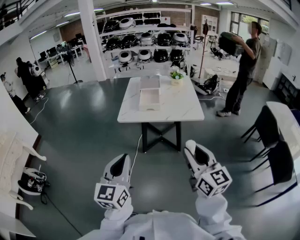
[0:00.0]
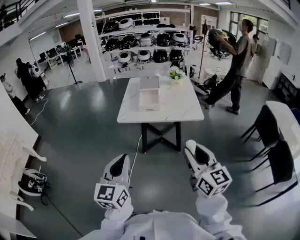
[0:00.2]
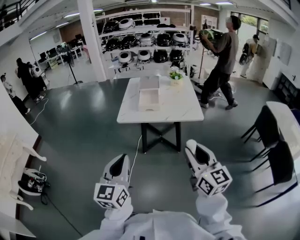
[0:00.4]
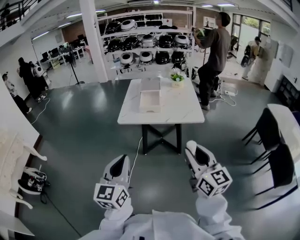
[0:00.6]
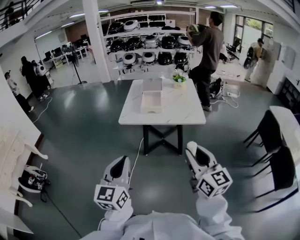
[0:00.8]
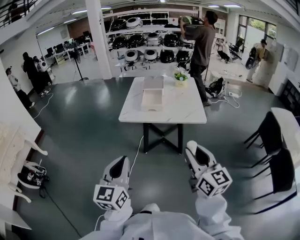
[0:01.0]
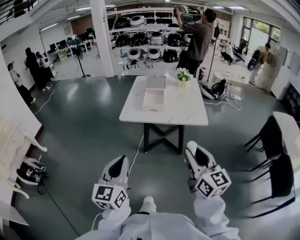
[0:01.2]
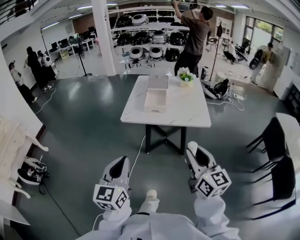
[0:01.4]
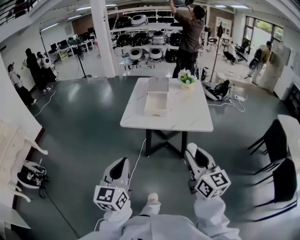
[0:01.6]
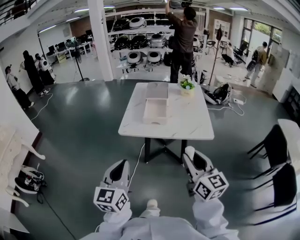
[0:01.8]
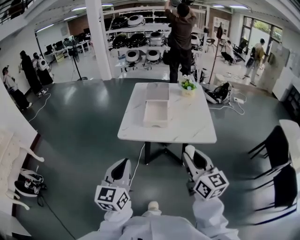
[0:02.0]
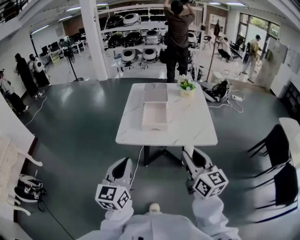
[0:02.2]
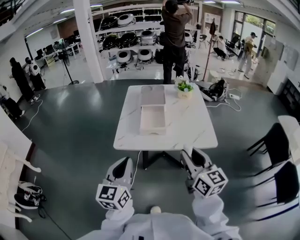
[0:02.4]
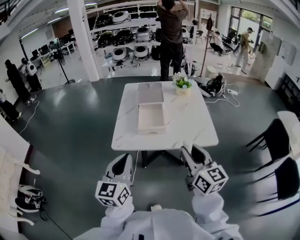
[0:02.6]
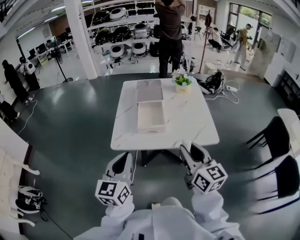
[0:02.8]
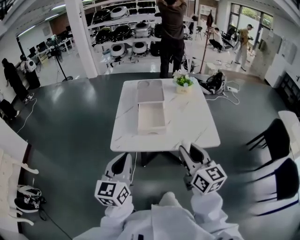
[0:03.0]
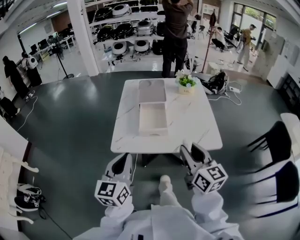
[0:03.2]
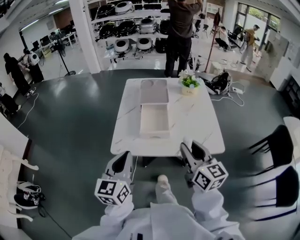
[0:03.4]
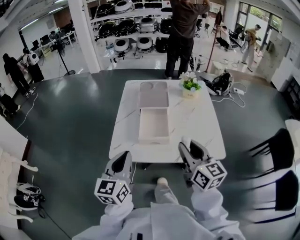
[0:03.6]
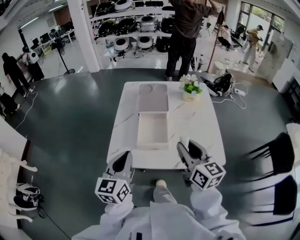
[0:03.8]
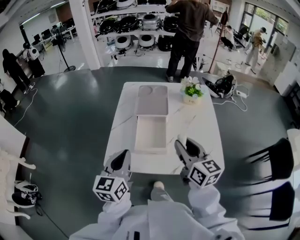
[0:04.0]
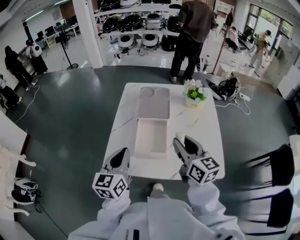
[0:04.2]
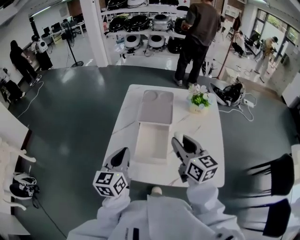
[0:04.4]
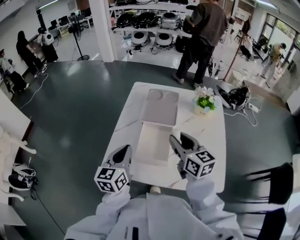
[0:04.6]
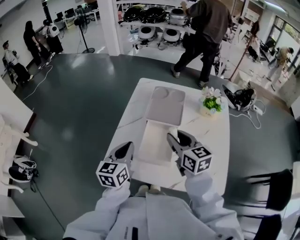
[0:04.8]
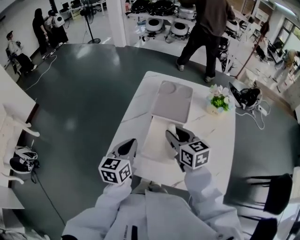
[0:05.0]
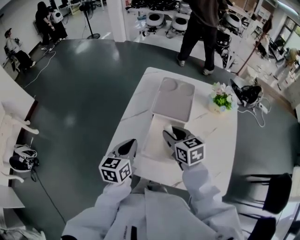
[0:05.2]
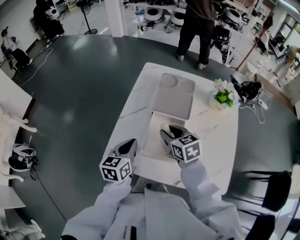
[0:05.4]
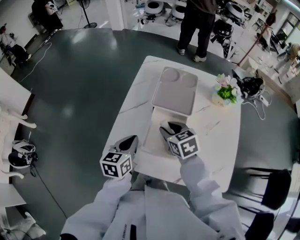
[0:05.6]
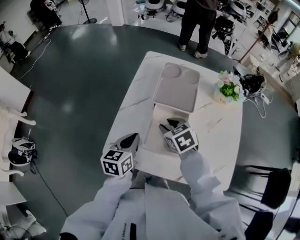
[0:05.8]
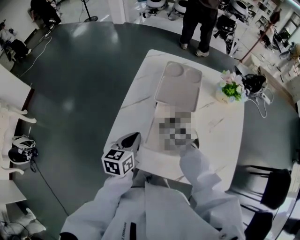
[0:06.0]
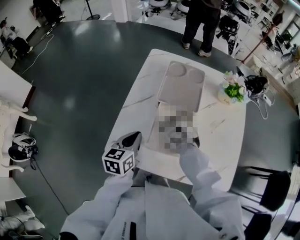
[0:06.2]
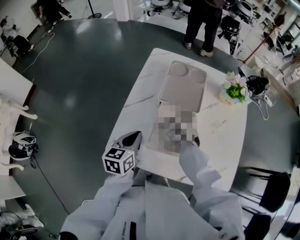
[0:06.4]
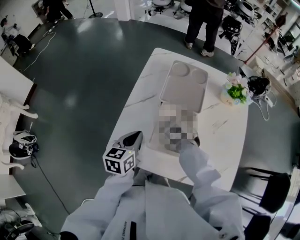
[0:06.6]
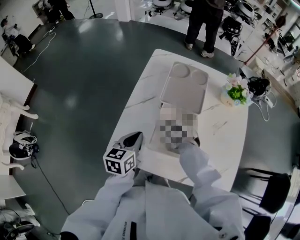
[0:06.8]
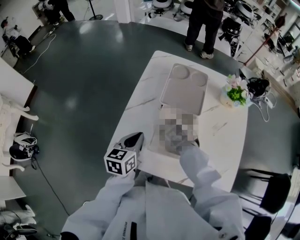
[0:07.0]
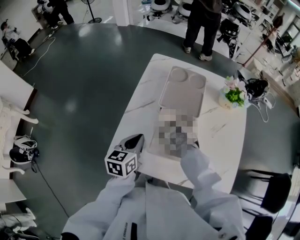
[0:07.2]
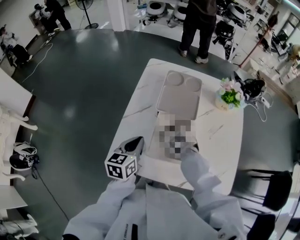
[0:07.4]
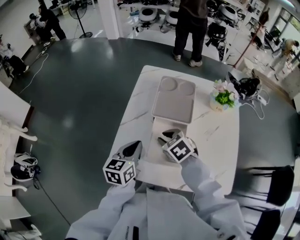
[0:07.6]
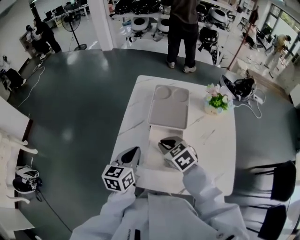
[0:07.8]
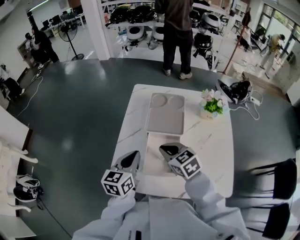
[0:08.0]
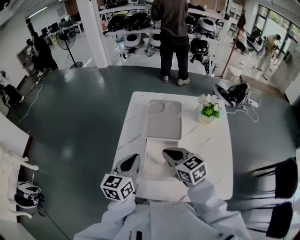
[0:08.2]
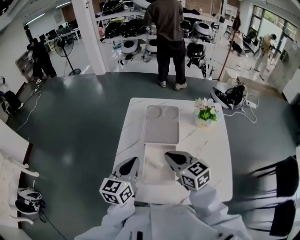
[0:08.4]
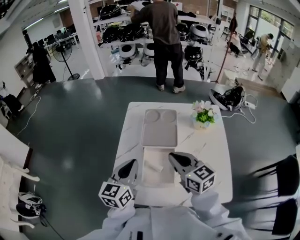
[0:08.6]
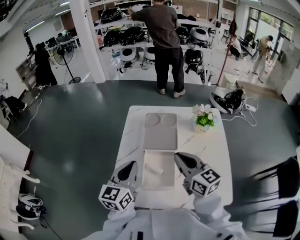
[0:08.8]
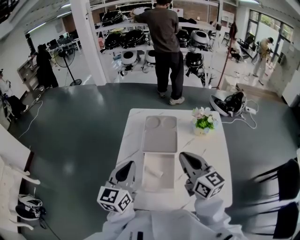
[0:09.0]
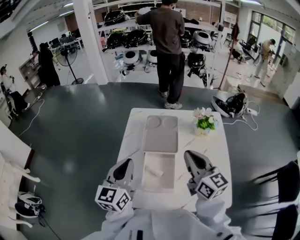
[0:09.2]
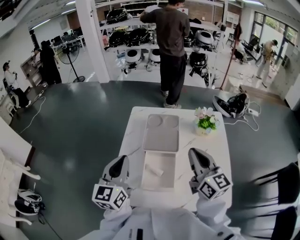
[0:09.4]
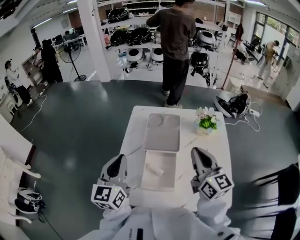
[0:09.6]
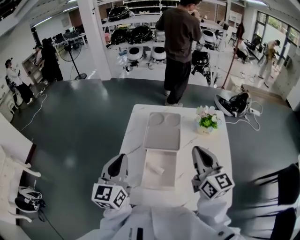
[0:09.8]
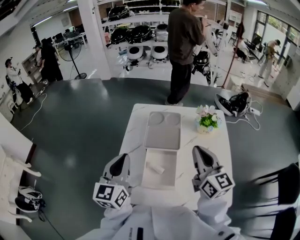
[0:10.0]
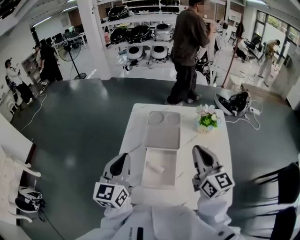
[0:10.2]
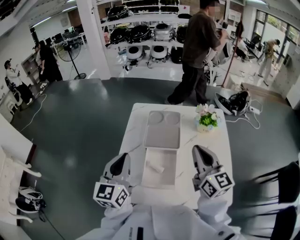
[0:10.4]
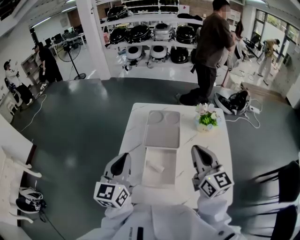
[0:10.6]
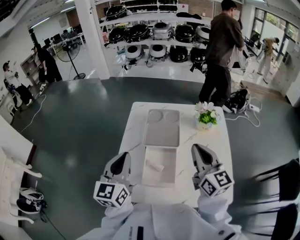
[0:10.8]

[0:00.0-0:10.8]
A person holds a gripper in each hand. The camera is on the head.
0:00.0 to 0:01.6: The two grippers go roughly 10 cm forward.
0:01.6 to 0:03.0: The two grippers go roughly 25 cm forward.
0:03.0 to 0:04.6: The grippers both shift forward by some 30 cm.
0:04.6 to 0:06.2: The right gripper travels downward, to the left and forward by approximately 25 cm, and points its fingers roughly 50 degrees further downward. Meanwhile the left gripper moves downward, about 10 cm.
0:06.2 to 0:07.8: The grippers both shift upward by approximately 5 cm. The right gripper closes up.
0:07.8 to 0:09.2: The left gripper is displaced upward by approximately 15 cm, and turns by approximately 20 degrees; the right gripper shifts roughly 25 cm upward and to the right, and tilts its fingers approximately 50 degrees upward.
0:09.2 to 0:10.8: The grippers move only a little.

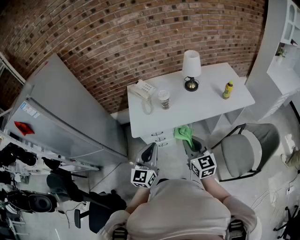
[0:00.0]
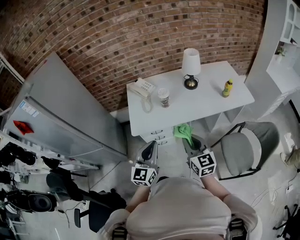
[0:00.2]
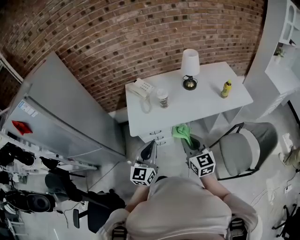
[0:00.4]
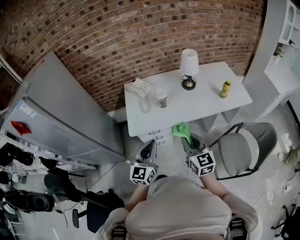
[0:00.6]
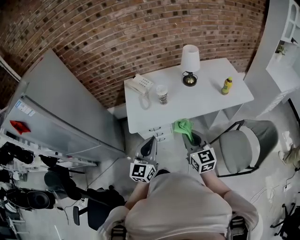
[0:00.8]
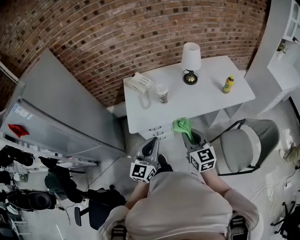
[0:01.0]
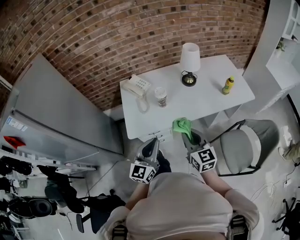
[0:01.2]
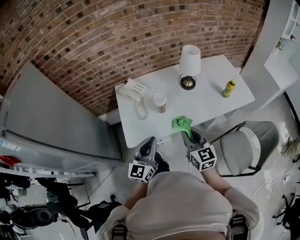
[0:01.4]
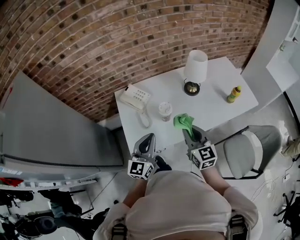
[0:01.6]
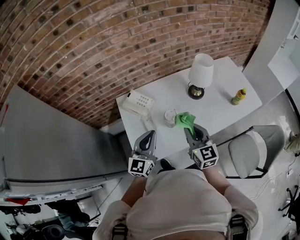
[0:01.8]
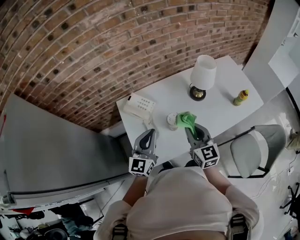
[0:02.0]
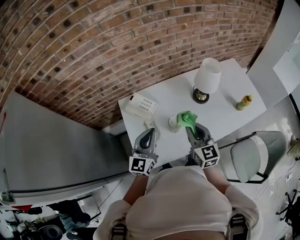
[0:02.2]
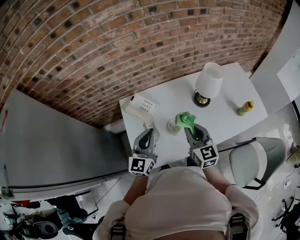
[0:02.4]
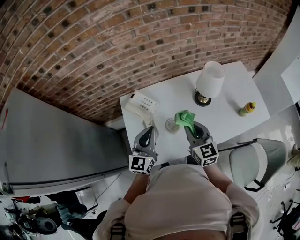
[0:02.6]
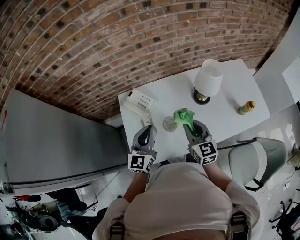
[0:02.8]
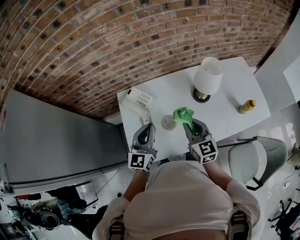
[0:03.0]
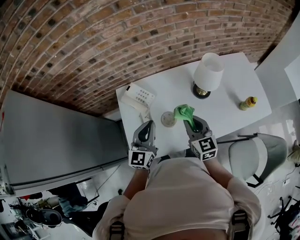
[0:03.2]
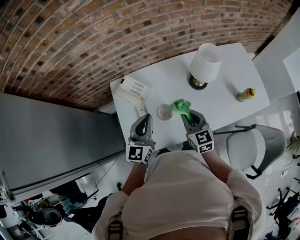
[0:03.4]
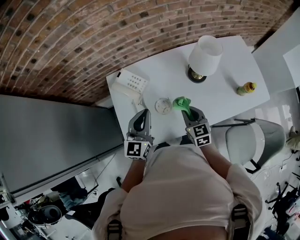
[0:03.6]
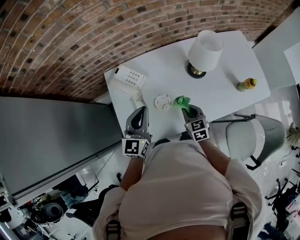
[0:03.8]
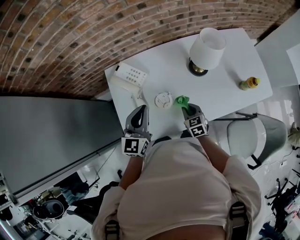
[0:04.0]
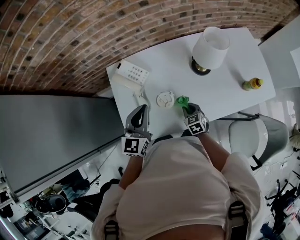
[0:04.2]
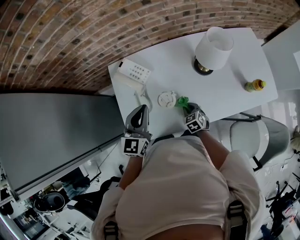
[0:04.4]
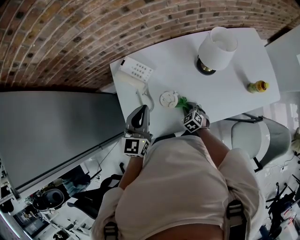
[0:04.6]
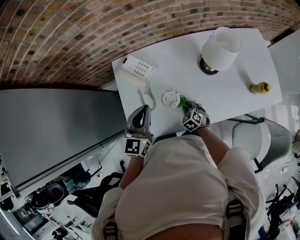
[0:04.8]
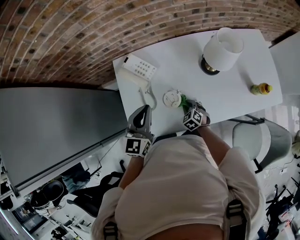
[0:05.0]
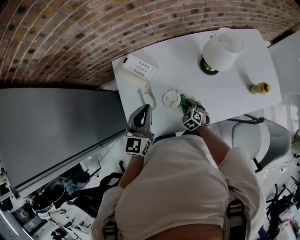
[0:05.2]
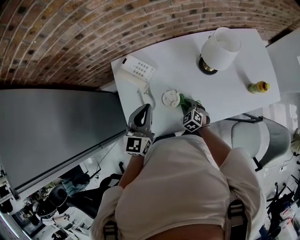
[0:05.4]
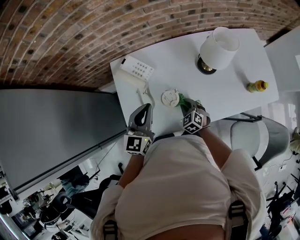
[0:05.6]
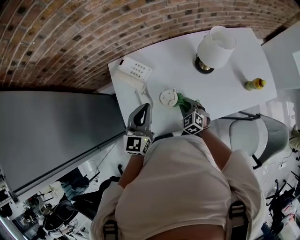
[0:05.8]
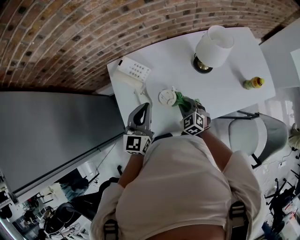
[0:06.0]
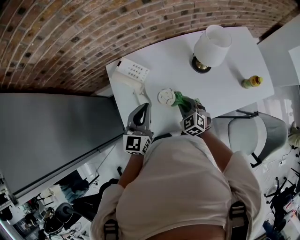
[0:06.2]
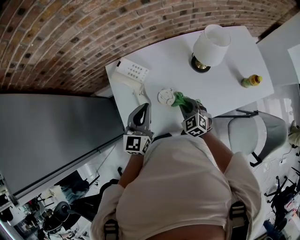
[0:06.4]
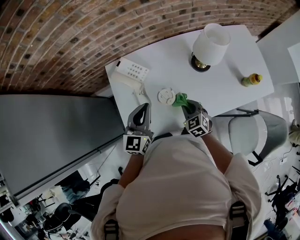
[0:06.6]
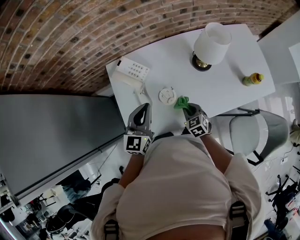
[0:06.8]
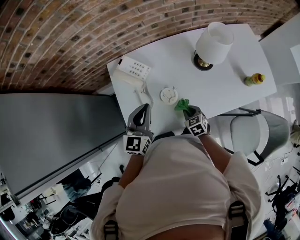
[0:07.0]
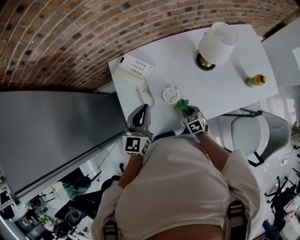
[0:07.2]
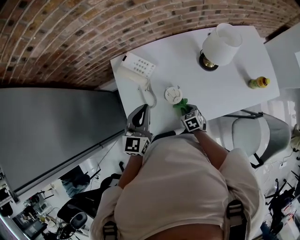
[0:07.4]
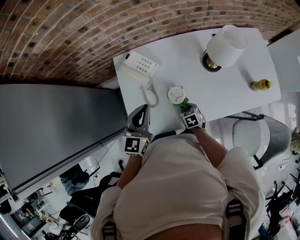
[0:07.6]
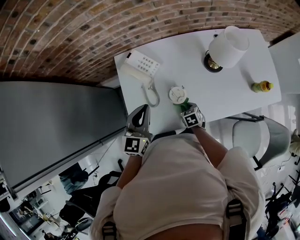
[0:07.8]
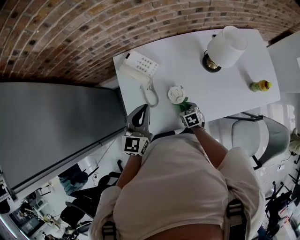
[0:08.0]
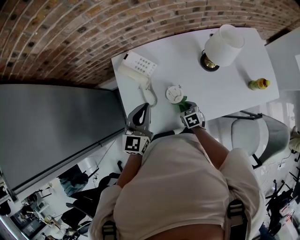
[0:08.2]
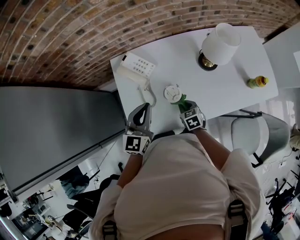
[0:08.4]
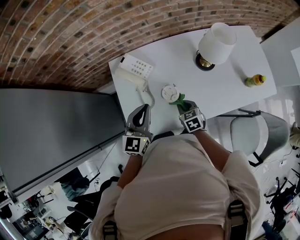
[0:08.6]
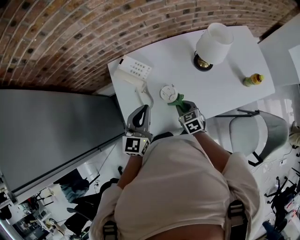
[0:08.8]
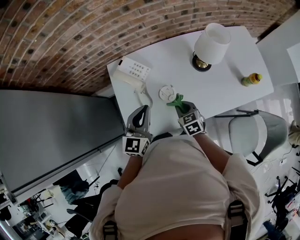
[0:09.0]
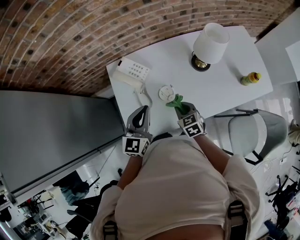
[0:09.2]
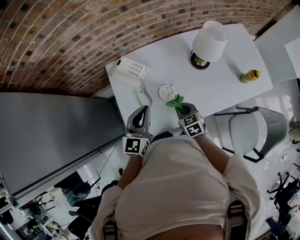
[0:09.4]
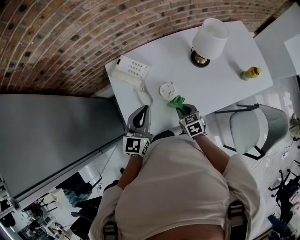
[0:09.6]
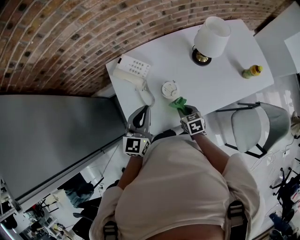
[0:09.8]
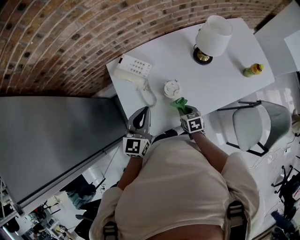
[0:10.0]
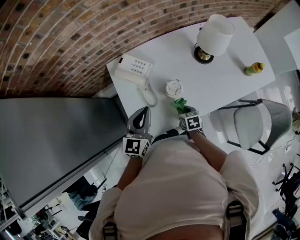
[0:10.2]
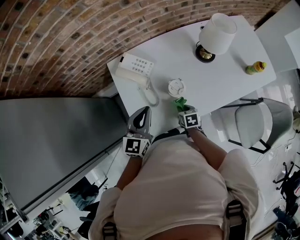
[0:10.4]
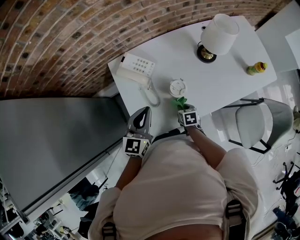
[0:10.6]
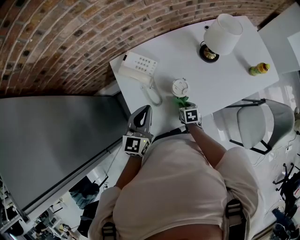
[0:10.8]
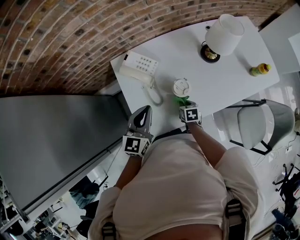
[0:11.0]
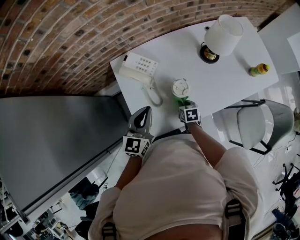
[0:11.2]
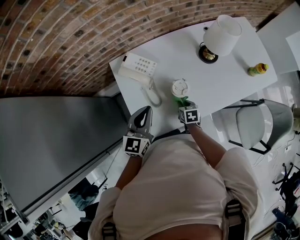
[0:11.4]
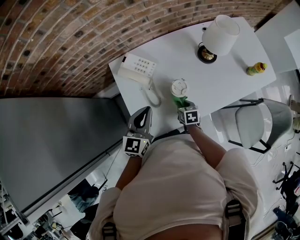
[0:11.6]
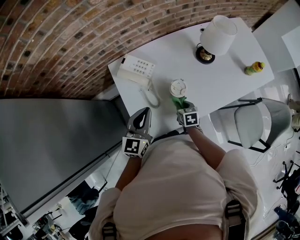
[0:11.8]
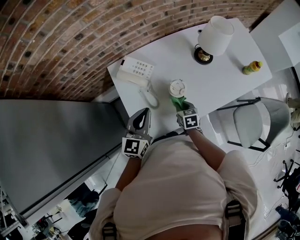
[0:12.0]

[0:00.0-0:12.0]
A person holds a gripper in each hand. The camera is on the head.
0:00.0 to 0:01.6: Both grippers travel together forward, about 25 cm.
0:01.6 to 0:03.0: The two grippers go approximately 15 cm forward.
0:03.0 to 0:04.4: The right gripper travels downward by roughly 30 cm, and points its fingers some 40 degrees further downward.
0:04.4 to 0:06.0: The right gripper heads upward, covering some 10 cm.
0:06.0 to 0:07.6: The right gripper heads downward, covering about 10 cm, and turns by roughly 30 degrees.
0:07.6 to 0:09.0: The right gripper moves upward, approximately 15 cm.
0:09.0 to 0:10.4: The left gripper shifts by some 5 cm. The right gripper moves downward, some 10 cm, and swivels some 30 degrees.
0:10.4 to 0:12.0: The right gripper is displaced upward by roughly 5 cm.

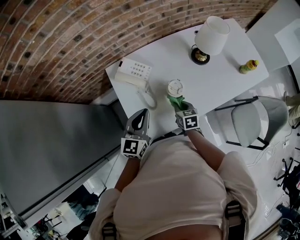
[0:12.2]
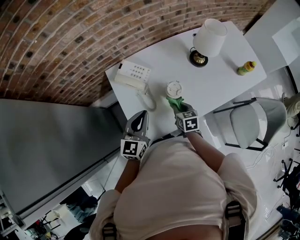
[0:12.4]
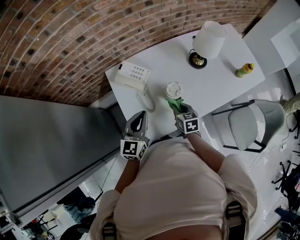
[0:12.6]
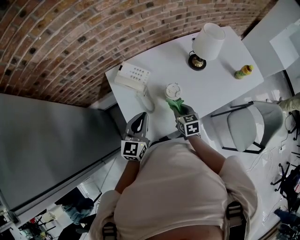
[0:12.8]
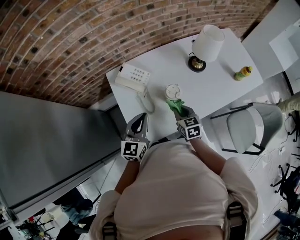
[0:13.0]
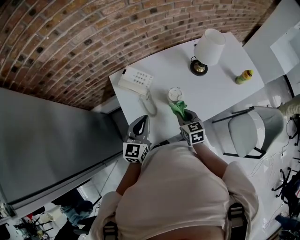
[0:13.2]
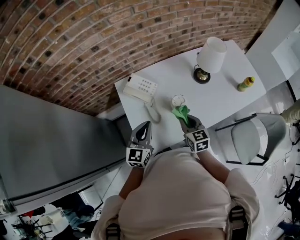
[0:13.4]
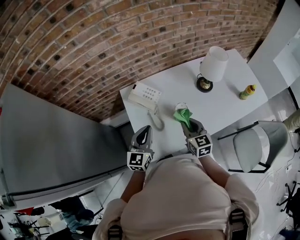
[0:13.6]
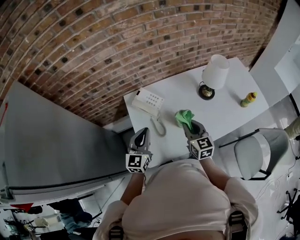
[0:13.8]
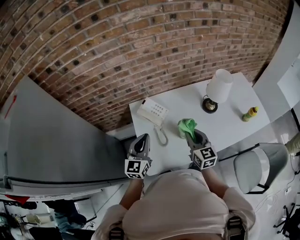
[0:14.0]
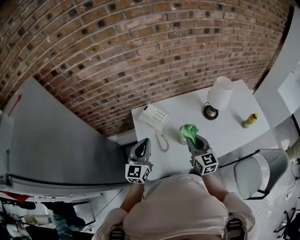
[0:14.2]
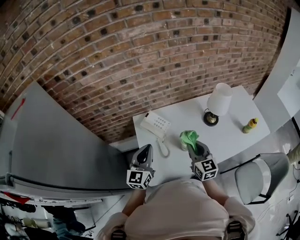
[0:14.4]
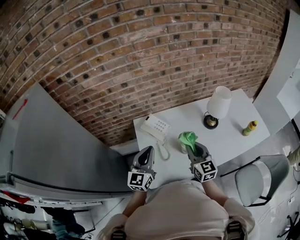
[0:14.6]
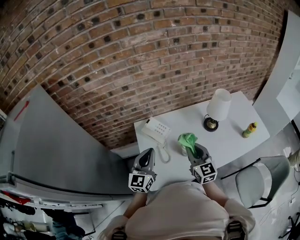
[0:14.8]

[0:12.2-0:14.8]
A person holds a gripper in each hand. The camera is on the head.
0:12.2 to 0:13.4: The right gripper moves upward, about 10 cm, and turns by approximately 20 degrees.
0:13.4 to 0:14.8: Both grippers move upward, approximately 10 cm. The right gripper rotates approximately 20 degrees.
